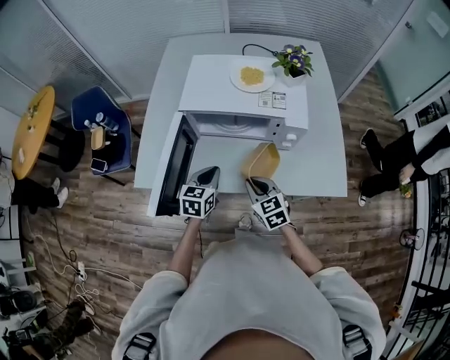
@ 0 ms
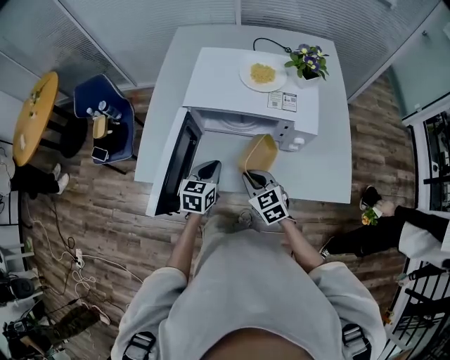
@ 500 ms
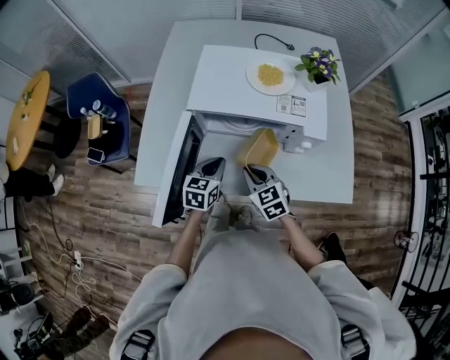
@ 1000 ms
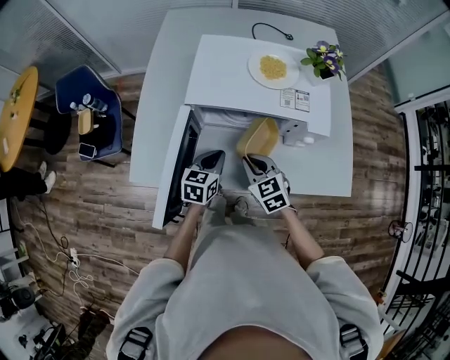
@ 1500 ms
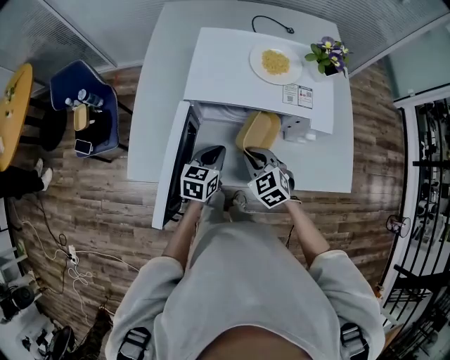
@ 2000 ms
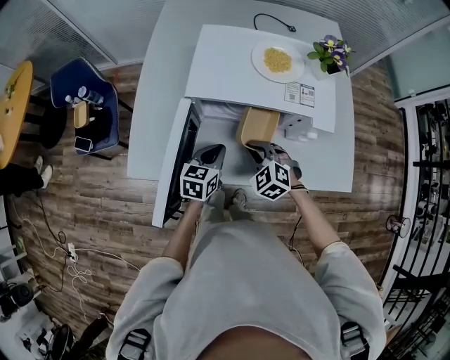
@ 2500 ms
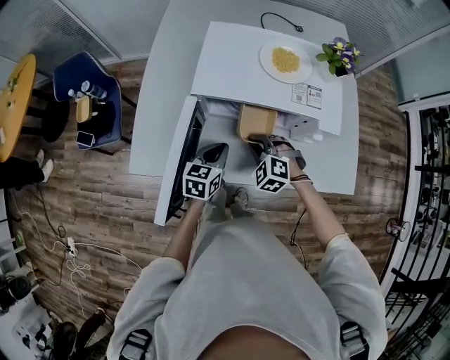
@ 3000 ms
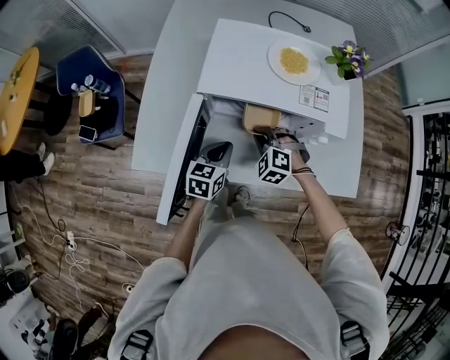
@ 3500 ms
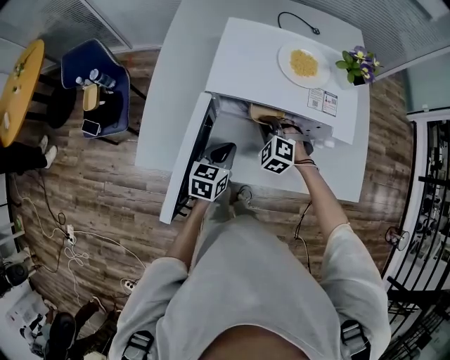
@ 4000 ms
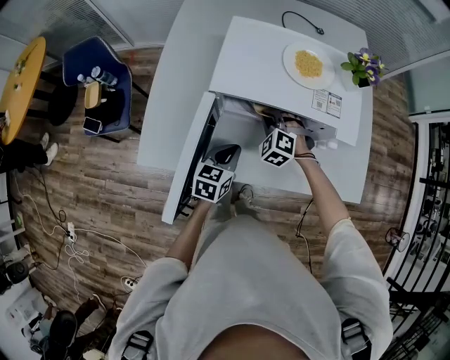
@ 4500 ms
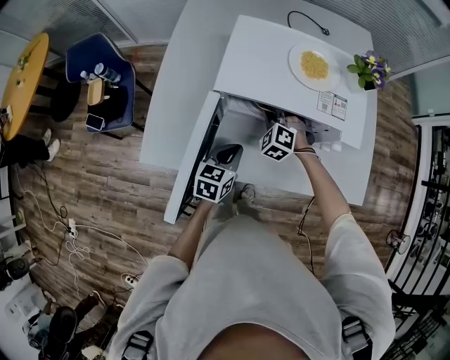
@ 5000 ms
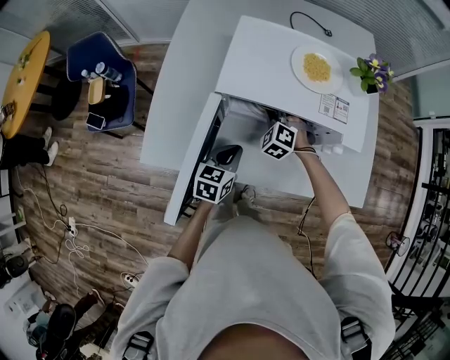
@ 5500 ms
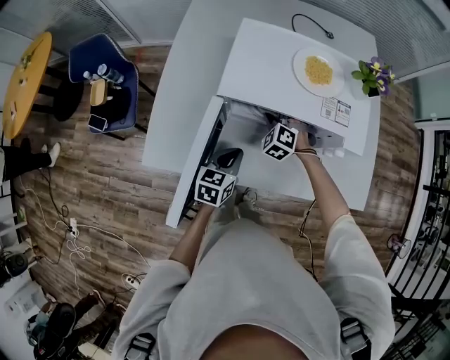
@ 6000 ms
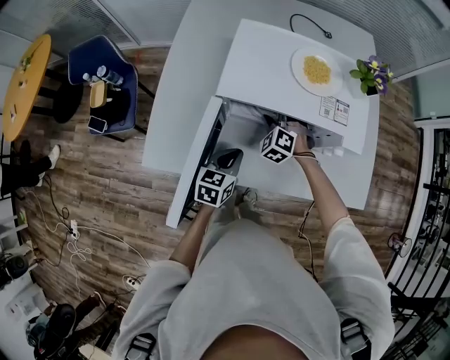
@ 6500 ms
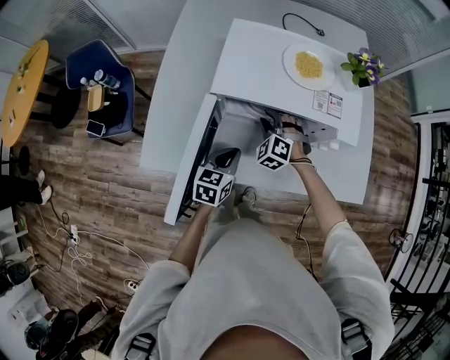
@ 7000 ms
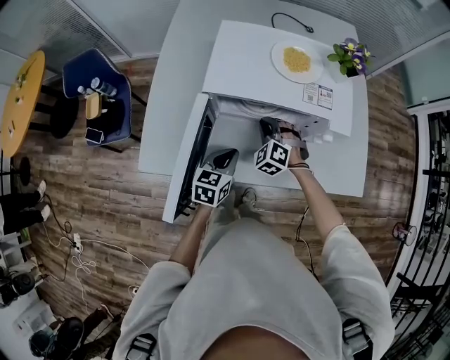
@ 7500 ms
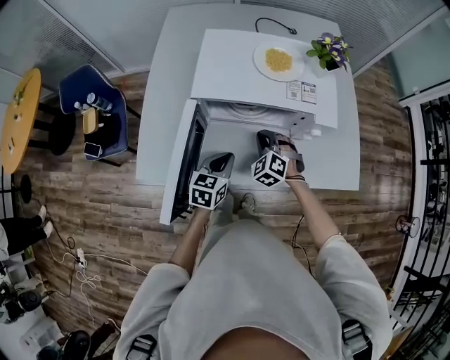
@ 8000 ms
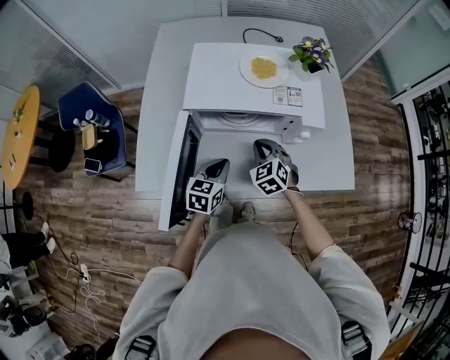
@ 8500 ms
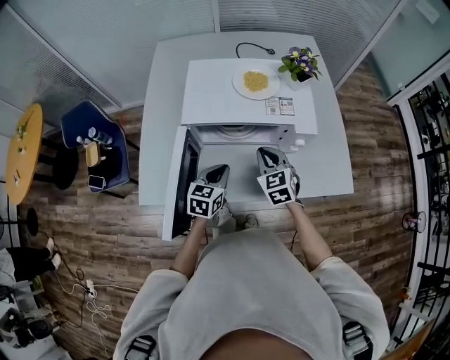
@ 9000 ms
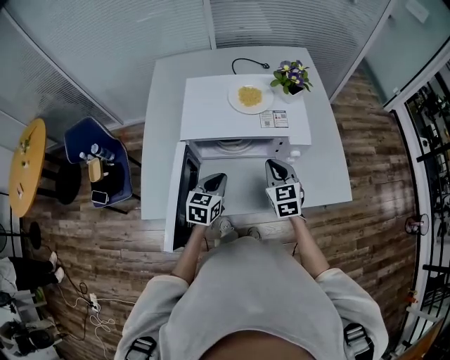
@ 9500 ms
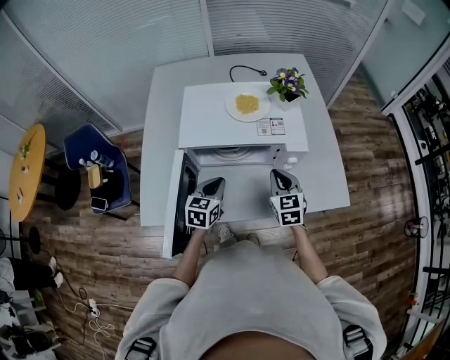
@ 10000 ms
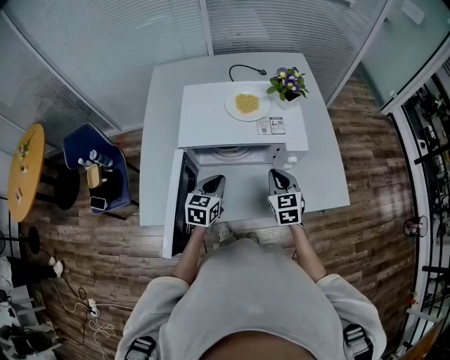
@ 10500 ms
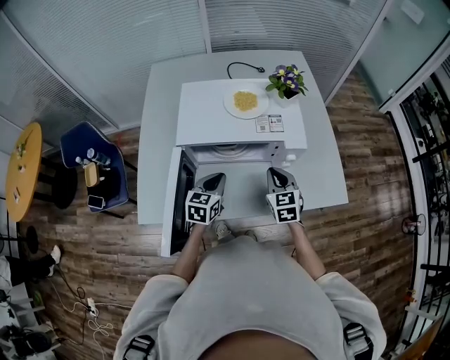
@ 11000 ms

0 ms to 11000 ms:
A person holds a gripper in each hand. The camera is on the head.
0 ms to 2000 ms: The grippers both shift forward by approximately 10 cm.
2000 ms to 3500 ms: The right gripper goes roughly 5 cm forward, and rotates roughly 40 degrees.
3500 ms to 5500 ms: The right gripper goes about 10 cm forward.
5500 ms to 7500 ms: The right gripper is displaced backward by some 5 cm, and opens, then closes once more.
7500 ms to 9000 ms: The right gripper heads upward and to the right, covering about 10 cm, and rotates around the line of its fingers by about 40 degrees, clockwise from behind.
9000 ms to 11000 ms: The right gripper shifts some 5 cm to the right.

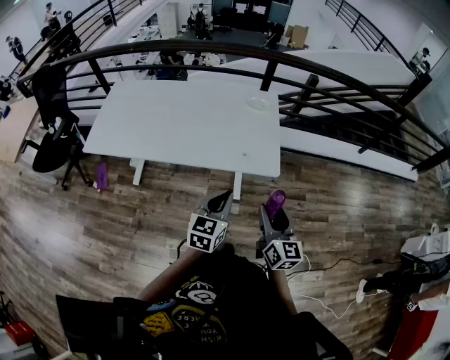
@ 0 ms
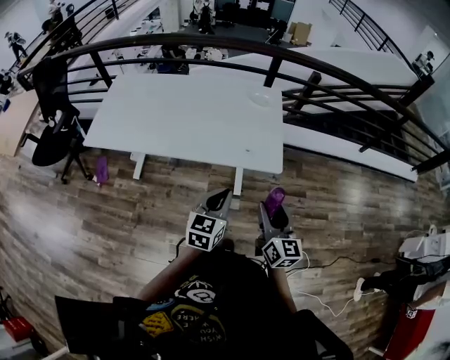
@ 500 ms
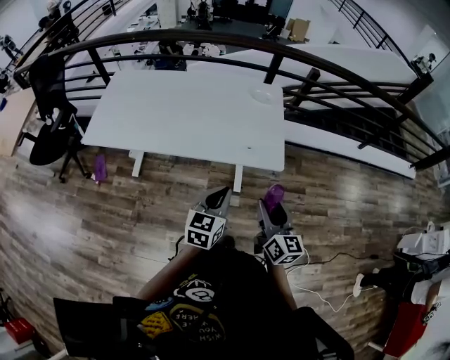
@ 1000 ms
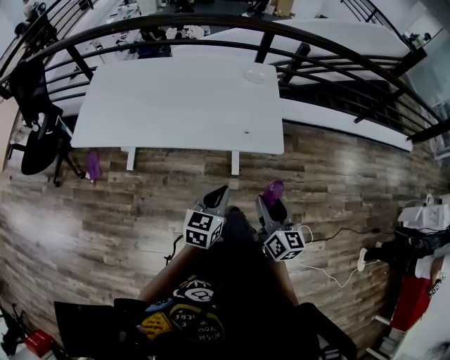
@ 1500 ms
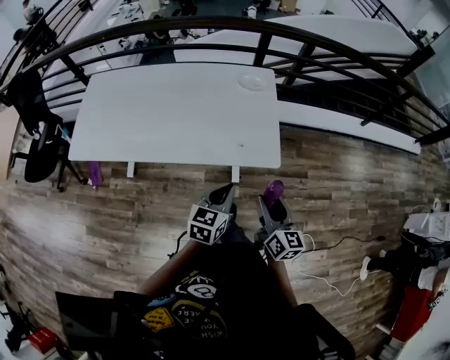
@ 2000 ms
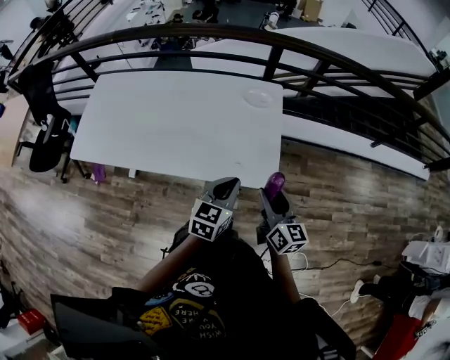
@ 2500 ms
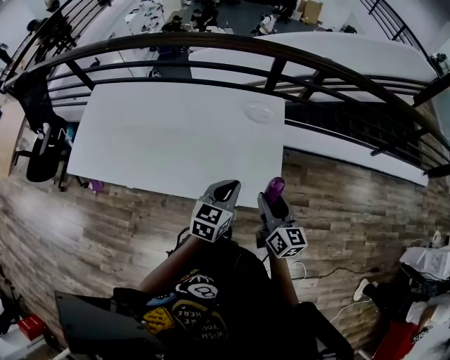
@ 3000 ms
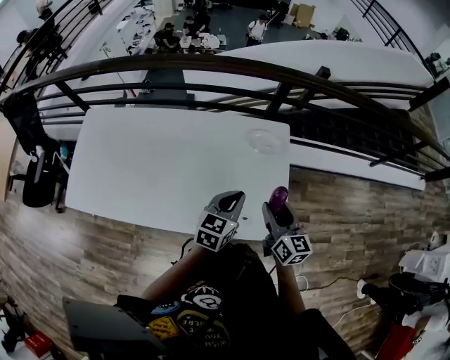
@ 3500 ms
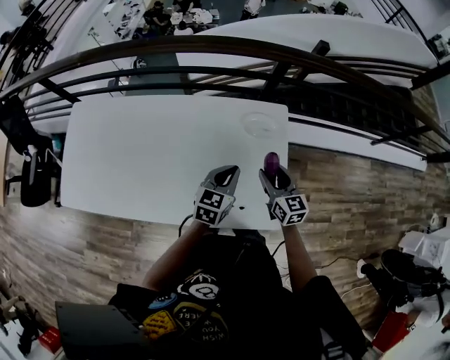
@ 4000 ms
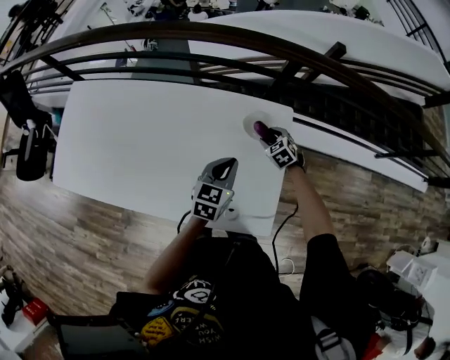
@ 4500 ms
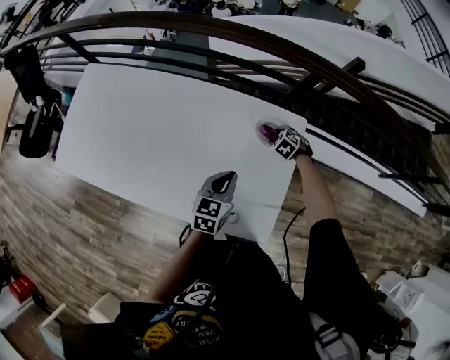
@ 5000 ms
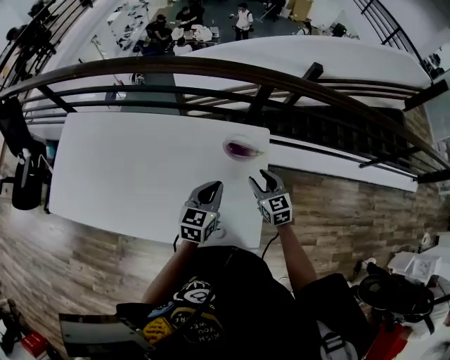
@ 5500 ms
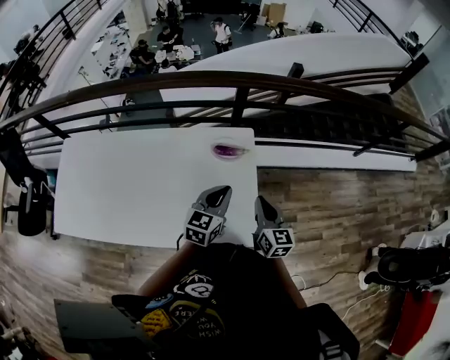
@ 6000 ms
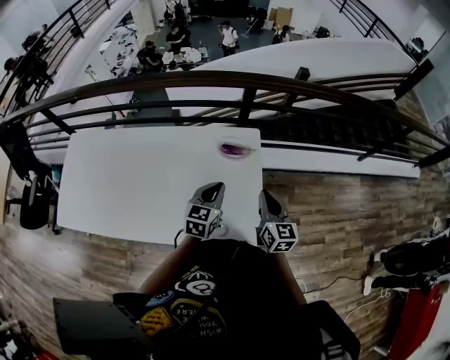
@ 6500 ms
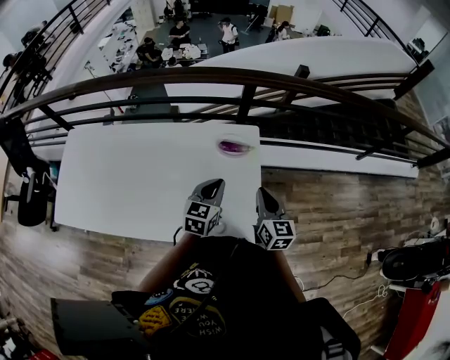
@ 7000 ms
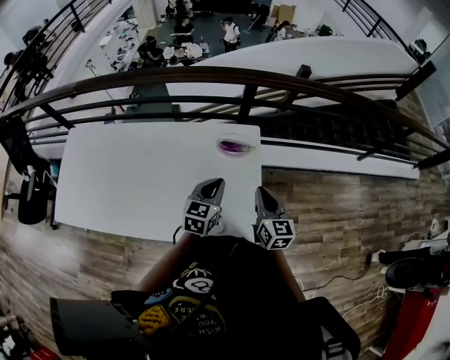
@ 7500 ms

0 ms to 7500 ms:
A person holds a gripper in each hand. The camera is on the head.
0 ms to 2000 ms: The grippers both shift forward and downward by about 10 cm.
2000 ms to 4000 ms: Both grippers move forward, about 40 cm. The right gripper changes its angle by some 20 degrees.
4000 ms to 5500 ms: The right gripper heads forward, covering roughly 5 cm, and moves some 20 cm downward and comes back.
5500 ms to 7500 ms: The left gripper heads to the right, covering some 5 cm. The right gripper heads backward, upward and to the right, covering about 15 cm, swivels some 30 degrees, and closes.

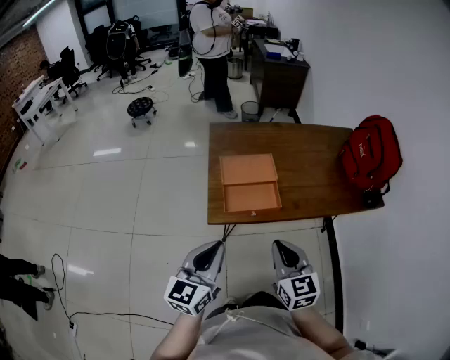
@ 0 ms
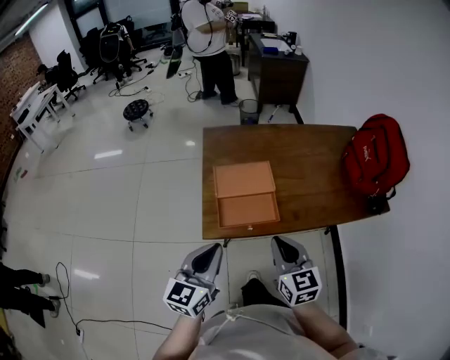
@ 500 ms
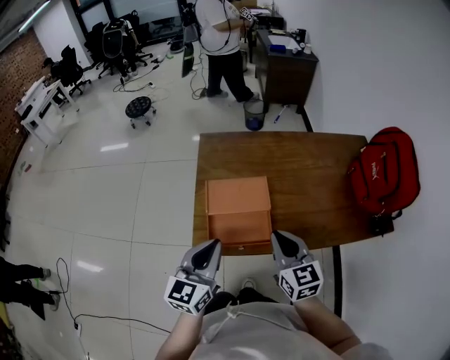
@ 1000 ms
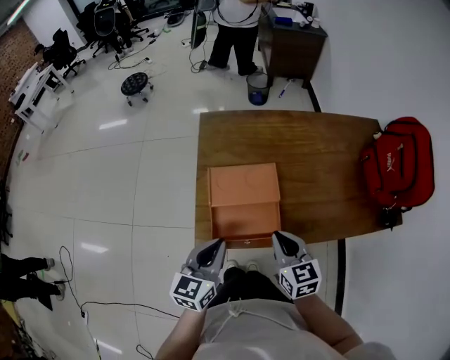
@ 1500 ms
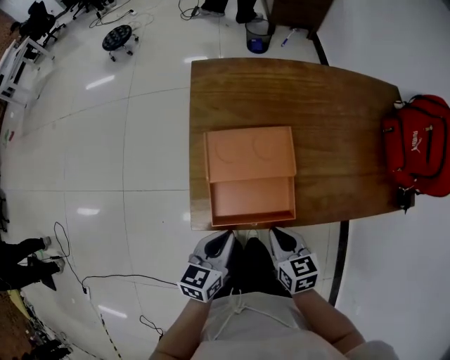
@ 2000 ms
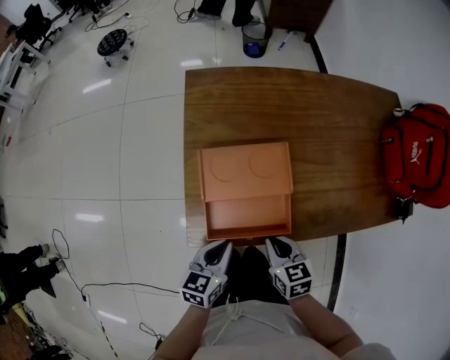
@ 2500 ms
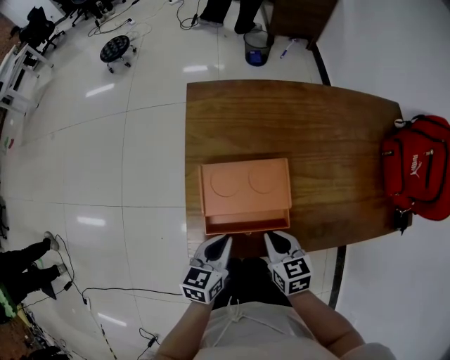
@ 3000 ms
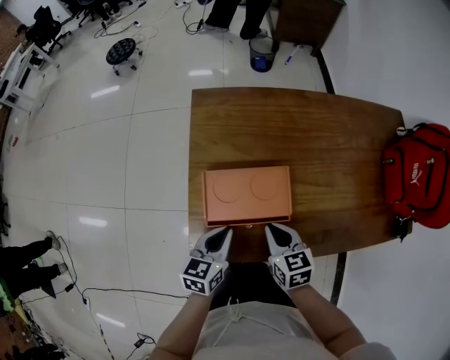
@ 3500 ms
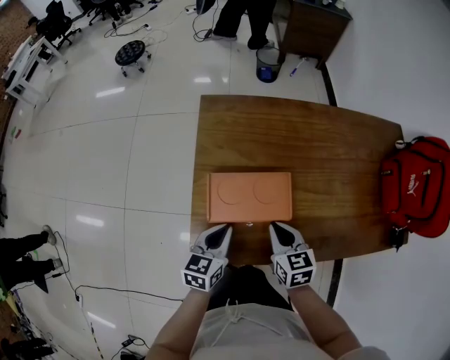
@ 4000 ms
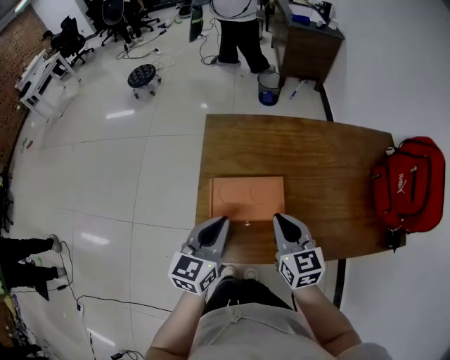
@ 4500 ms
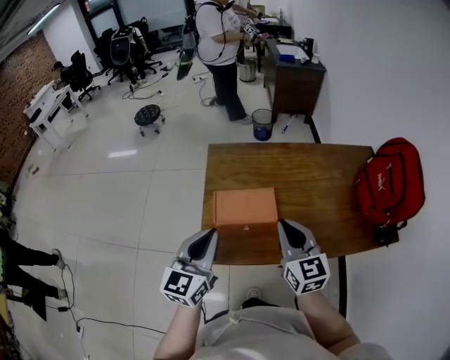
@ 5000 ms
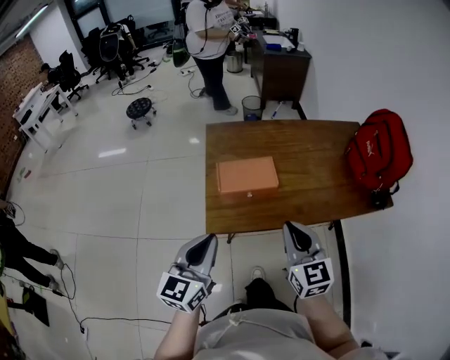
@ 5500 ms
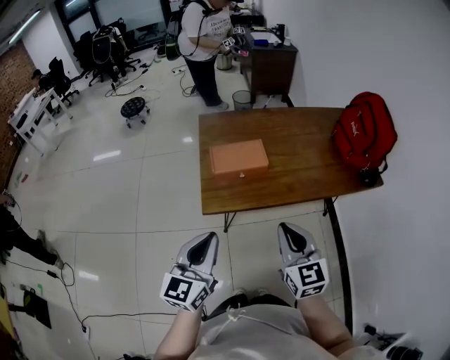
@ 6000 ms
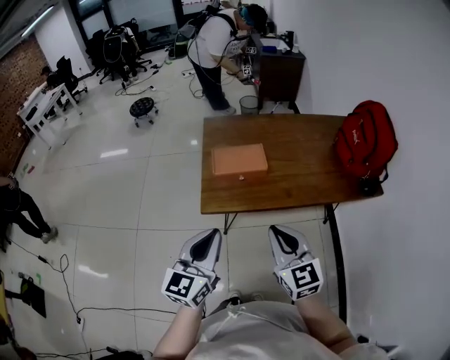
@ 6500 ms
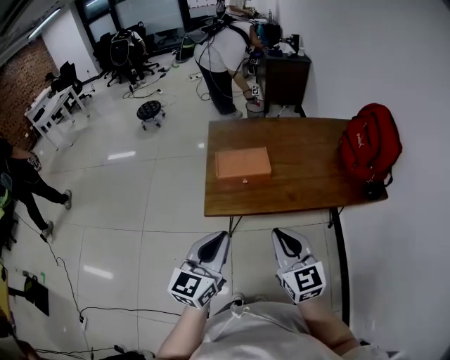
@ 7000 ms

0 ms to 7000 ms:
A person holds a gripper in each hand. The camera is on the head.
0 ms to 2000 ms: The two grippers go approximately 25 cm downward and forward. The left gripper turns by approximately 30 degrees. Meanwhile the right gripper changes its angle by approximately 30 degrees.
2000 ms to 3500 ms: The two grippers go approximately 10 cm forward.
3500 ms to 5000 ms: The grippers both shift upward by about 25 cm. The left gripper swivels roughly 30 degrees. Meanwhile the right gripper changes its angle by some 30 degrees.
5000 ms to 7000 ms: Both grippers move backward, some 25 cm.

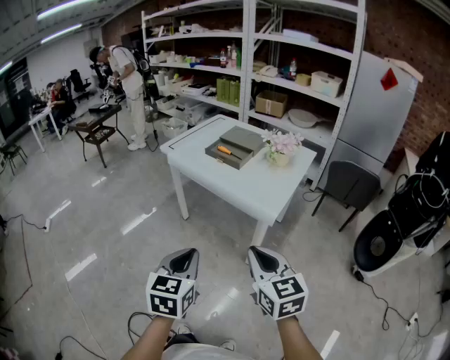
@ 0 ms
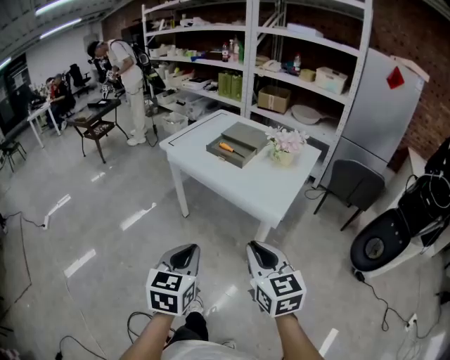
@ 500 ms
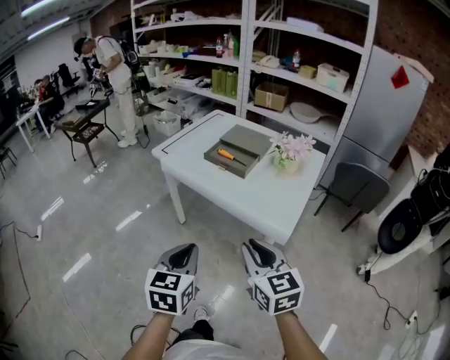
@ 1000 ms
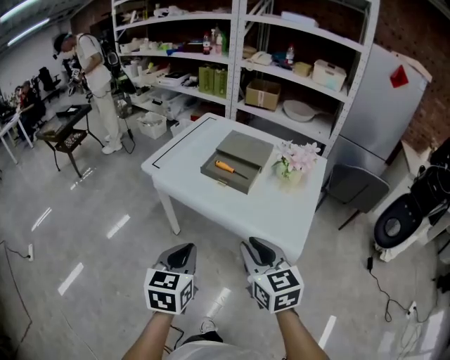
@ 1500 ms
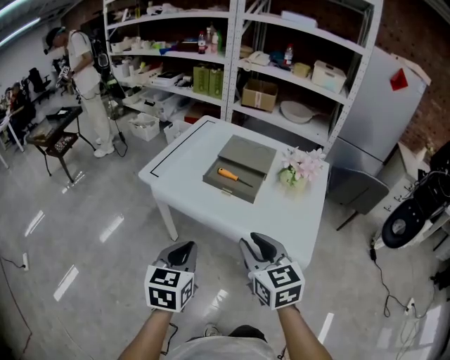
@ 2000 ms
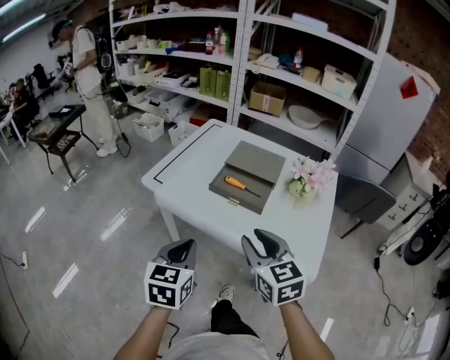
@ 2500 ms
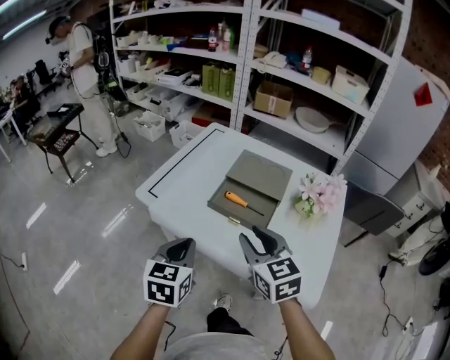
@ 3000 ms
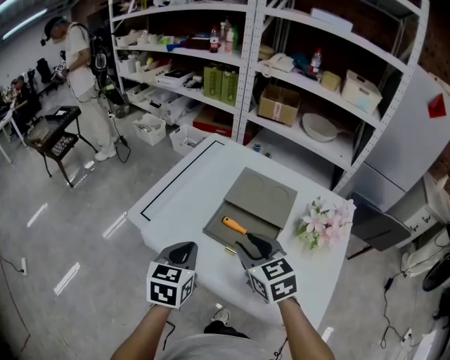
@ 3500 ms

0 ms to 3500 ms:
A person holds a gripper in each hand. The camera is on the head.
0 ms to 2000 ms: The grippers both shift forward by approximately 35 cm. The right gripper opens up.
2000 ms to 3500 ms: Both grippers travel together forward, some 25 cm.
